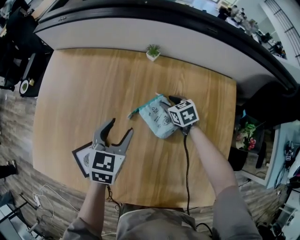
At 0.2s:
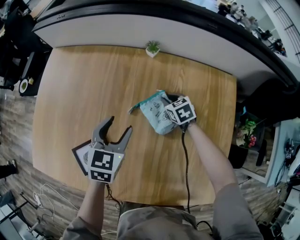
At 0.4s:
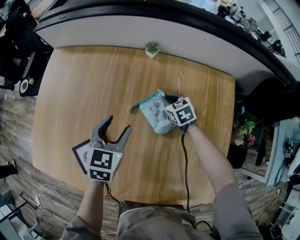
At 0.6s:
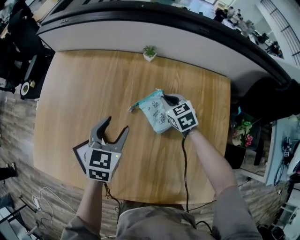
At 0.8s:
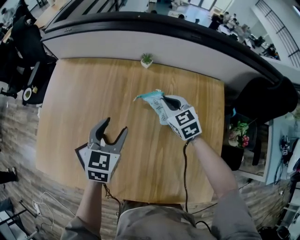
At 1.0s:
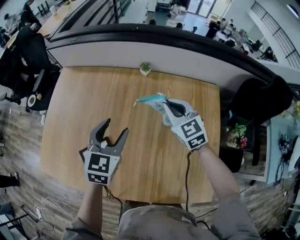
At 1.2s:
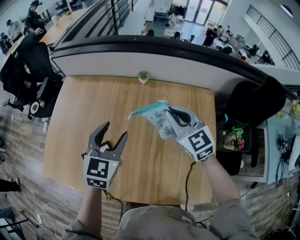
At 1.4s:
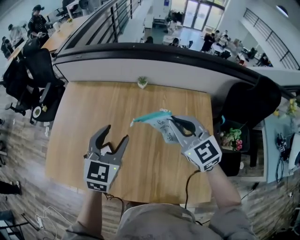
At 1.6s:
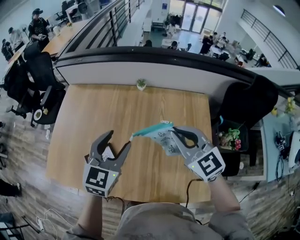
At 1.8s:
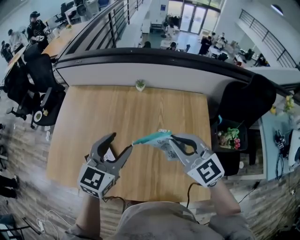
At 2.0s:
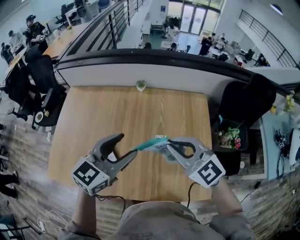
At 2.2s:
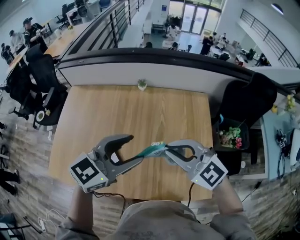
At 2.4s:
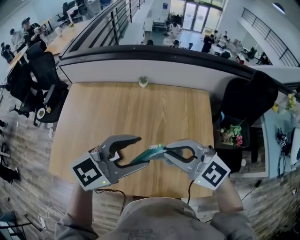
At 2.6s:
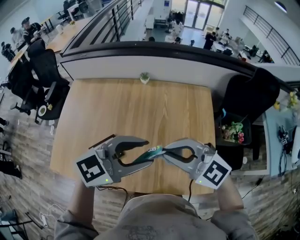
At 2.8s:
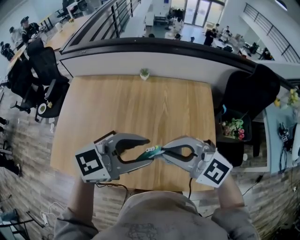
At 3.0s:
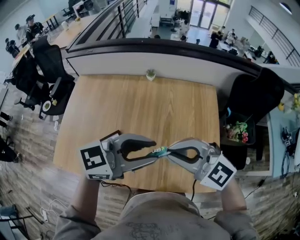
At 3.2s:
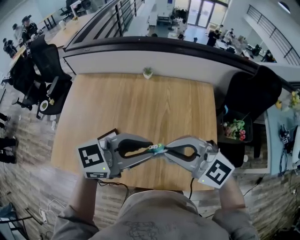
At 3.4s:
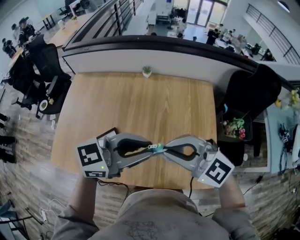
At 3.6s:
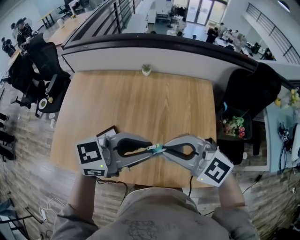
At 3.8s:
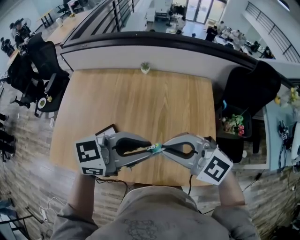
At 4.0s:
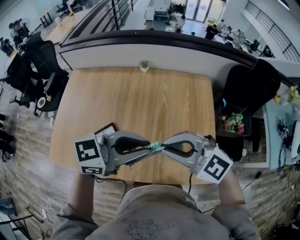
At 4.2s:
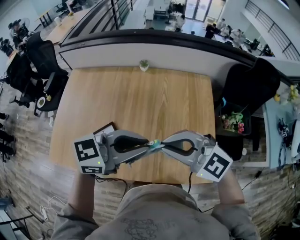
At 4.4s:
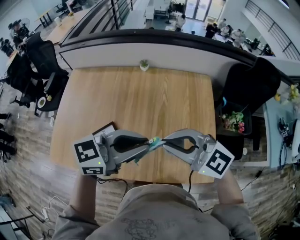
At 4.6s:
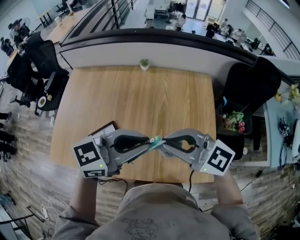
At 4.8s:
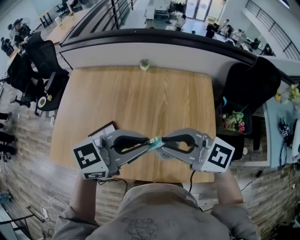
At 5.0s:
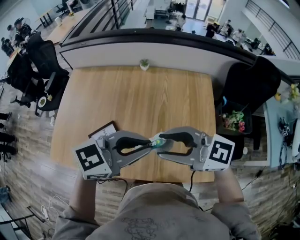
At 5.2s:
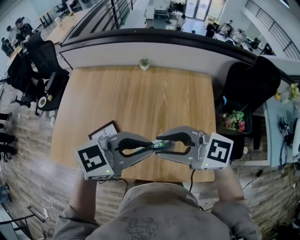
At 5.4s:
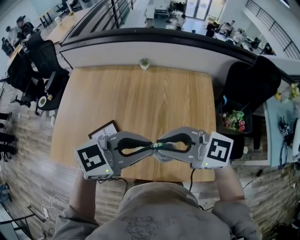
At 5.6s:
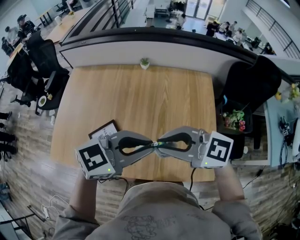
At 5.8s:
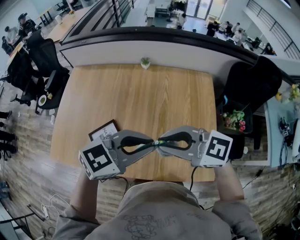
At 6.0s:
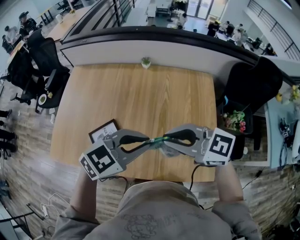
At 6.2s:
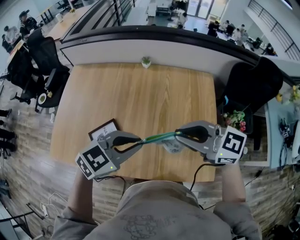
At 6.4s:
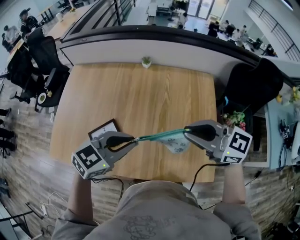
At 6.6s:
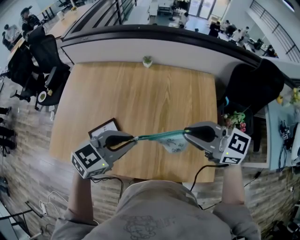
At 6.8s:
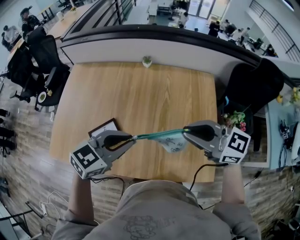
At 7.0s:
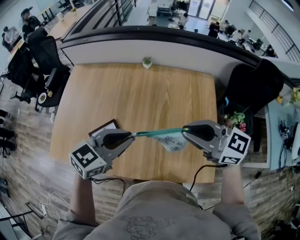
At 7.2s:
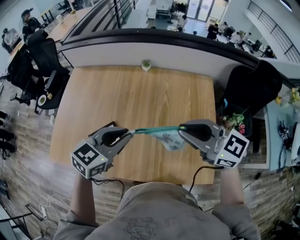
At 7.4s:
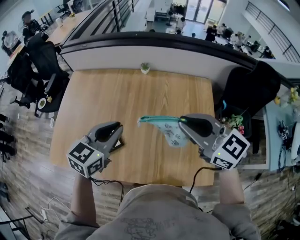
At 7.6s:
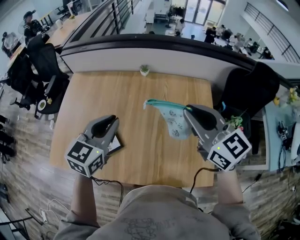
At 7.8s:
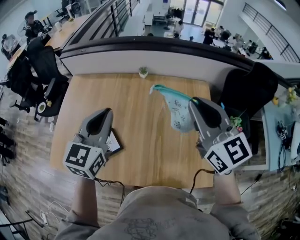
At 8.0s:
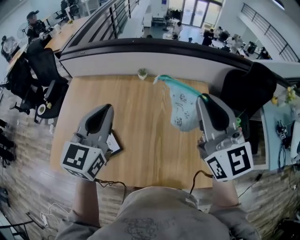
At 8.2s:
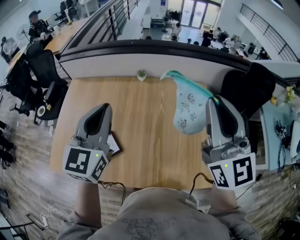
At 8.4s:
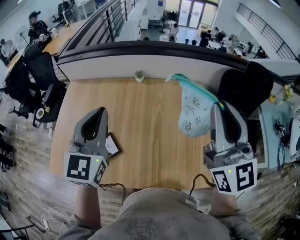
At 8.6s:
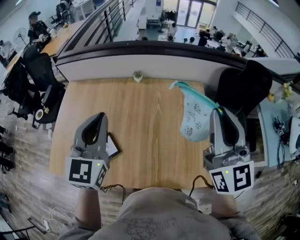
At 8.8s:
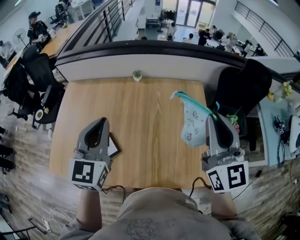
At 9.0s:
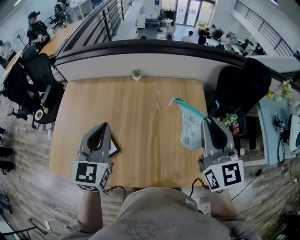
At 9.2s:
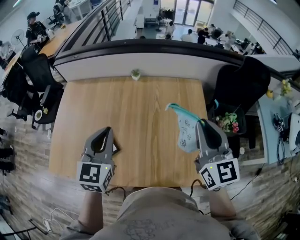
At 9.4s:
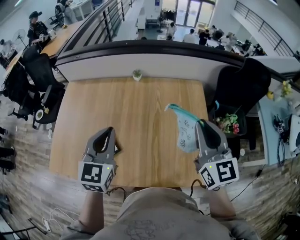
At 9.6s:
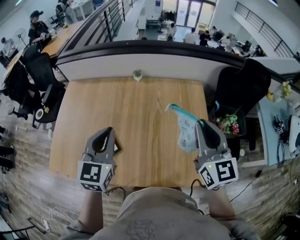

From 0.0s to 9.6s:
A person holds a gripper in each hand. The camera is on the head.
From 0.0s to 1.6s: The left gripper moves upward and backward, some 25 cm, and swivels roughly 20 degrees; the right gripper heads upward and backward, covering some 50 cm, points its fingers some 40 degrees further upward, and closes.
From 1.6s to 3.2s: The right gripper shifts by approximately 15 cm, and rotates about 30 degrees, while the left gripper changes place by about 15 cm, swivels approximately 50 degrees, and closes its fingers.
From 3.2s to 4.8s: The right gripper turns by some 30 degrees.
From 4.8s to 6.4s: The left gripper travels downward by some 10 cm, and changes its angle by roughly 20 degrees. Meanwhile the right gripper moves roughly 10 cm, and opens, then closes again.
From 6.4s to 8.0s: The grippers both shift upward by approximately 15 cm. The left gripper rotates some 40 degrees, while the right gripper turns by some 50 degrees.
From 8.0s to 9.6s: The two grippers go some 10 cm downward.

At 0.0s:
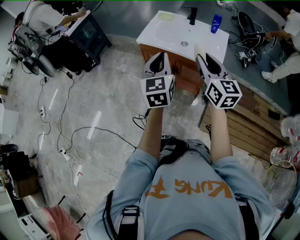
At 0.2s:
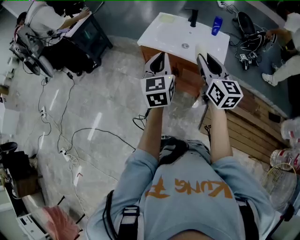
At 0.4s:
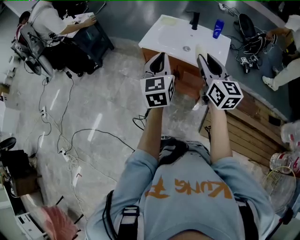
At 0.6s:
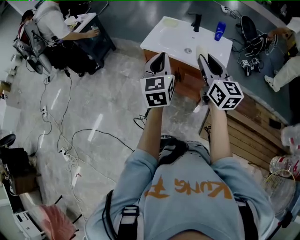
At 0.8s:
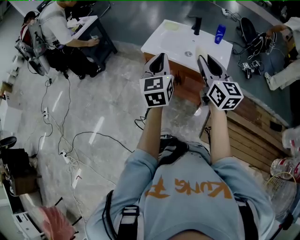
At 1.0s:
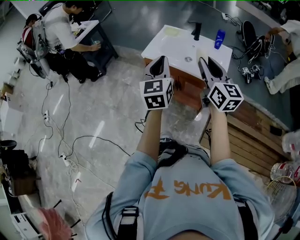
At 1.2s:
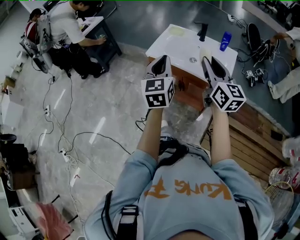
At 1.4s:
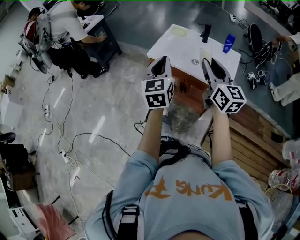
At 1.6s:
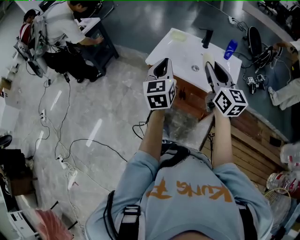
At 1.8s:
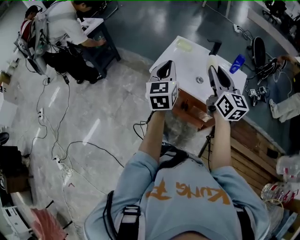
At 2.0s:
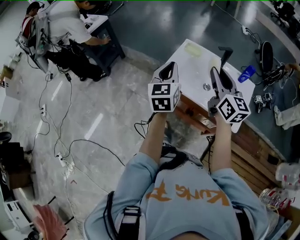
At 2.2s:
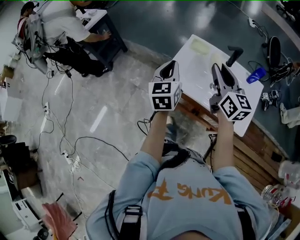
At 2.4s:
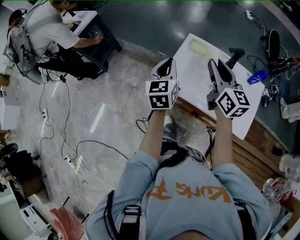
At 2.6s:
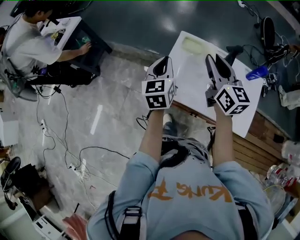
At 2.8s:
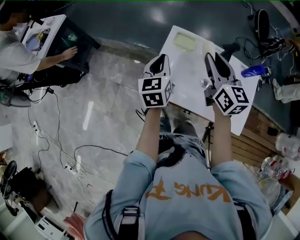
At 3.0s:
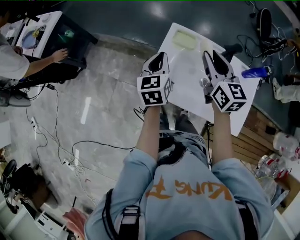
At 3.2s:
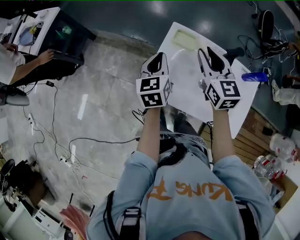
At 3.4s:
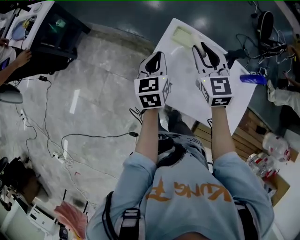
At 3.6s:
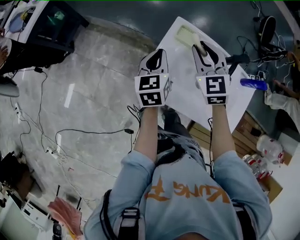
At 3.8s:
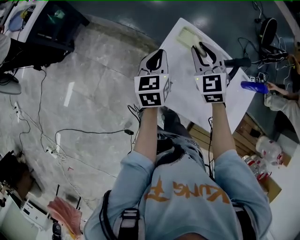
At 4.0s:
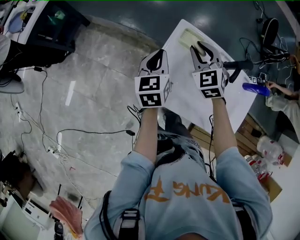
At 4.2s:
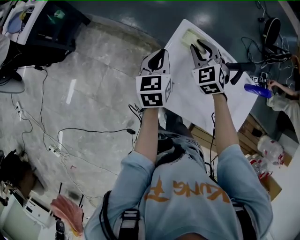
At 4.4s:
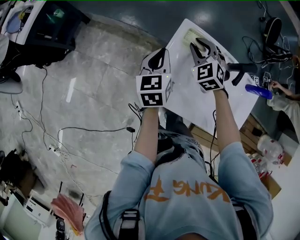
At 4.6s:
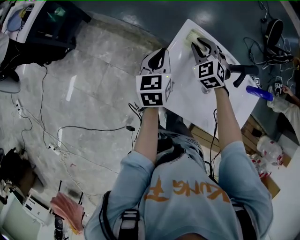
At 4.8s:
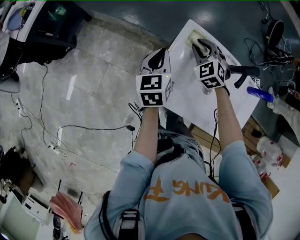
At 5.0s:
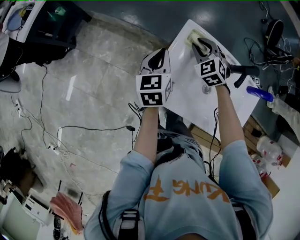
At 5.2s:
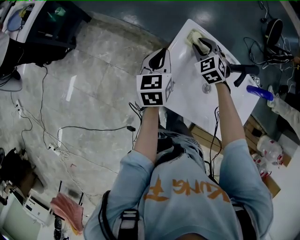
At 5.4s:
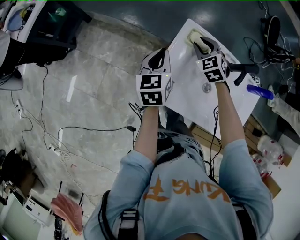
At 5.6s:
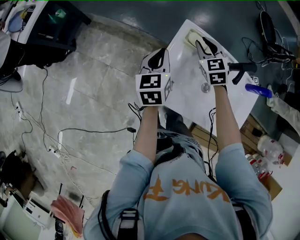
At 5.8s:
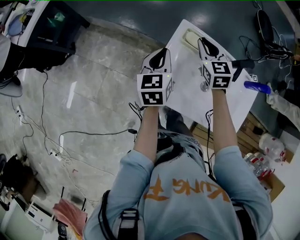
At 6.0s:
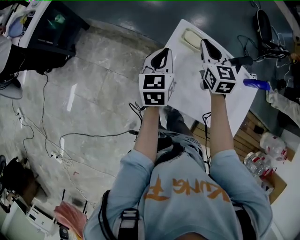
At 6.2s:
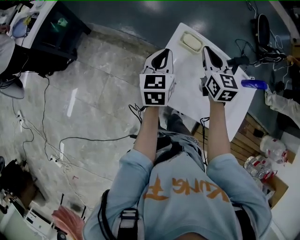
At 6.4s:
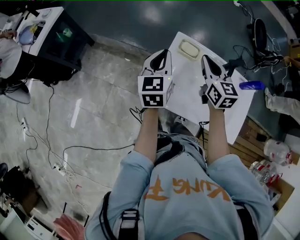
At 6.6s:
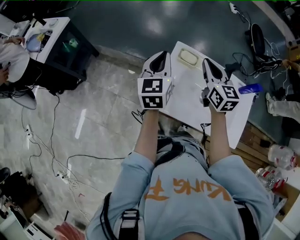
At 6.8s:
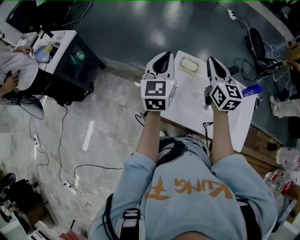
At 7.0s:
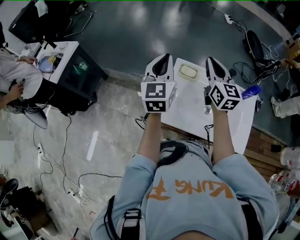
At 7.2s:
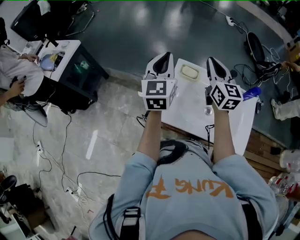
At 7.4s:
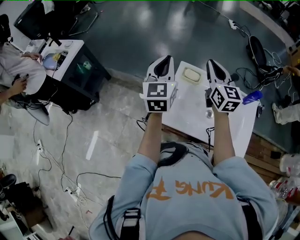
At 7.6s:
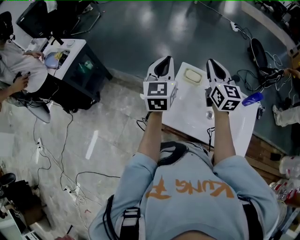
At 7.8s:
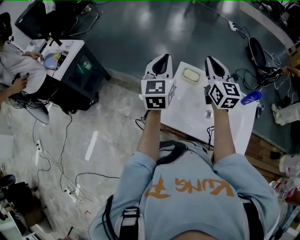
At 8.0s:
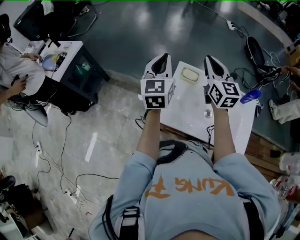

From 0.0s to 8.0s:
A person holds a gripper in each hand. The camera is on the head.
From 0.0s to 1.6s: Both grippers travel together forward, some 15 cm.
From 1.6s to 3.2s: The grippers both shift forward by about 40 cm. The right gripper rotates some 20 degrees; the left gripper turns by approximately 20 degrees.
From 3.2s to 4.8s: The left gripper shifts some 10 cm downward and forward. Meanwhile the right gripper moves downward and forward, some 20 cm, and twists approximately 40 degrees counterclockwise, seen from behind.
From 4.8s to 6.4s: The left gripper is displaced upward by about 10 cm; the right gripper is displaced upward and backward by roughly 15 cm, and rotates around the line of its fingers by some 50 degrees, clockwise from behind.
From 6.4s to 8.0s: Both grippers move upward, roughly 15 cm.

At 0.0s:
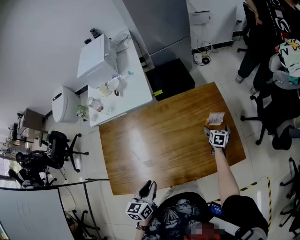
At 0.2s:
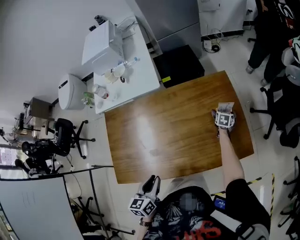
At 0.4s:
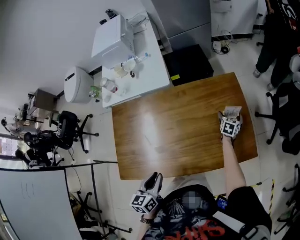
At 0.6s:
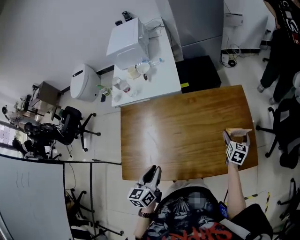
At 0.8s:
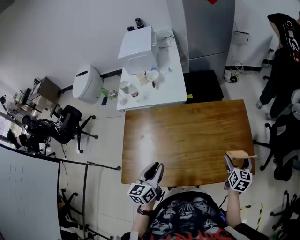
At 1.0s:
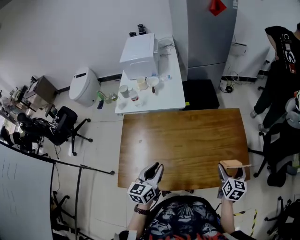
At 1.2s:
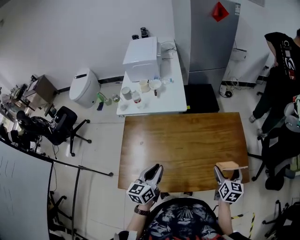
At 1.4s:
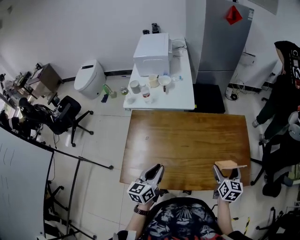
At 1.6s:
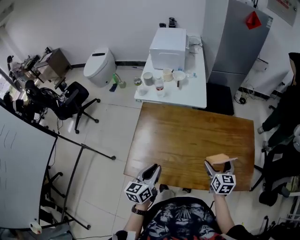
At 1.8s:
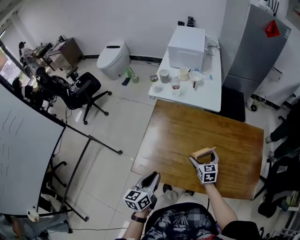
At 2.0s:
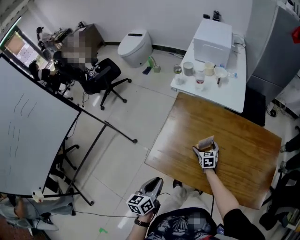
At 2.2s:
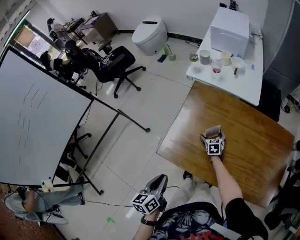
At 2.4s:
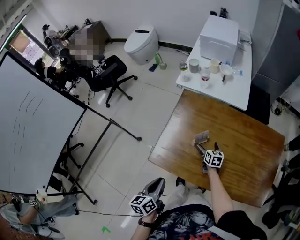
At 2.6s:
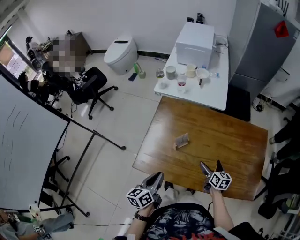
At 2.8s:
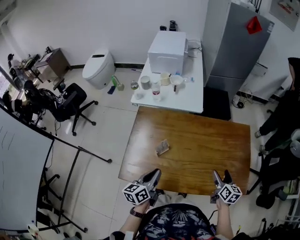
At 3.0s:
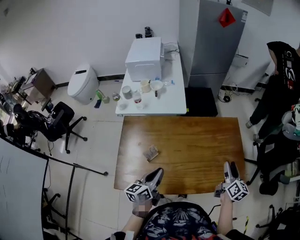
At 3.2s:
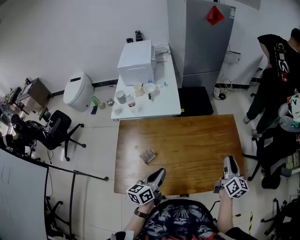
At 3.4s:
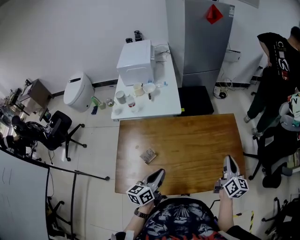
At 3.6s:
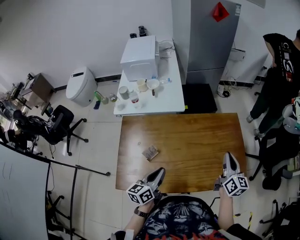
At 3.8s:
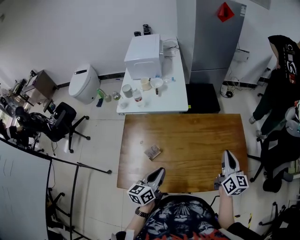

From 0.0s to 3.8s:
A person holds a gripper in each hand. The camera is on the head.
From 0.0s to 1.2s: The right gripper goes roughly 30 cm upward, backward and to the left, and swivels about 20 degrees, while the left gripper shifts about 15 cm to the left, forward and upward.
From 1.2s to 2.6s: The left gripper turns by some 30 degrees; the right gripper changes its angle by roughly 30 degrees.
From 2.6s to 3.8s: The right gripper shifts roughly 25 cm upward, changes its angle by some 40 degrees, and closes, while the left gripper changes place by approximately 20 cm, and turns by approximately 20 degrees.

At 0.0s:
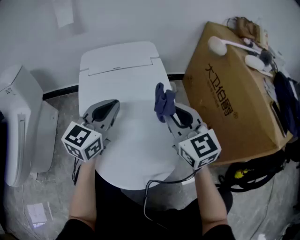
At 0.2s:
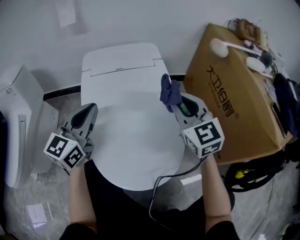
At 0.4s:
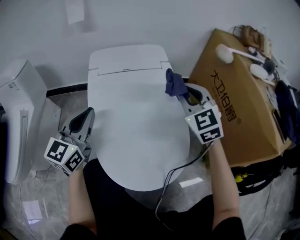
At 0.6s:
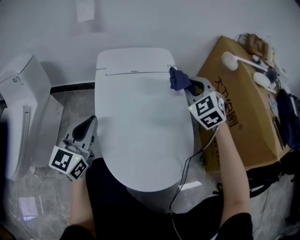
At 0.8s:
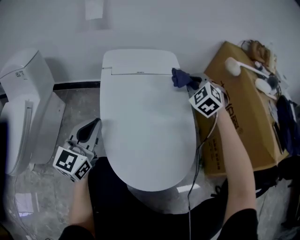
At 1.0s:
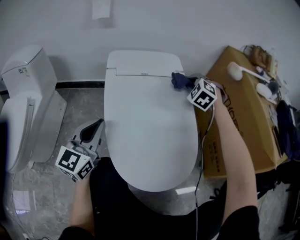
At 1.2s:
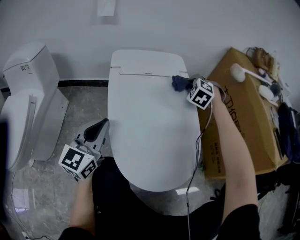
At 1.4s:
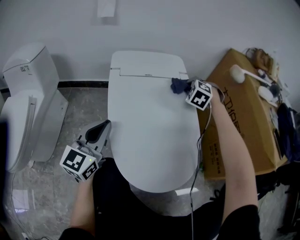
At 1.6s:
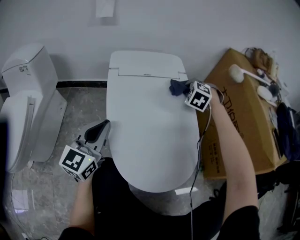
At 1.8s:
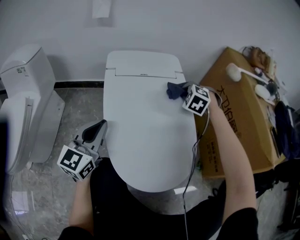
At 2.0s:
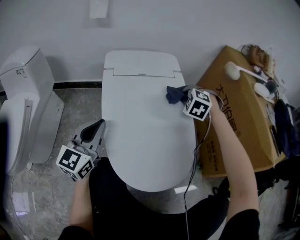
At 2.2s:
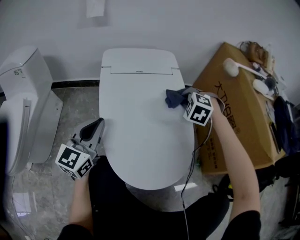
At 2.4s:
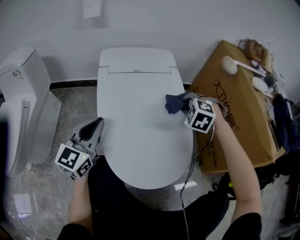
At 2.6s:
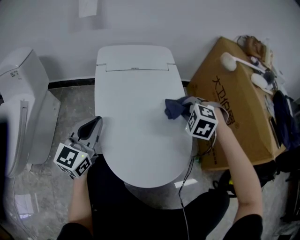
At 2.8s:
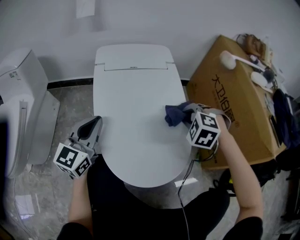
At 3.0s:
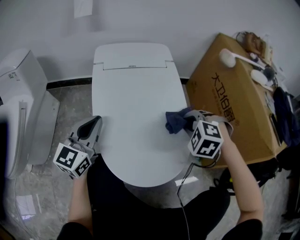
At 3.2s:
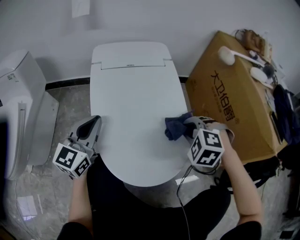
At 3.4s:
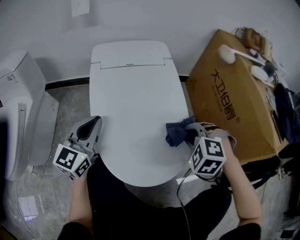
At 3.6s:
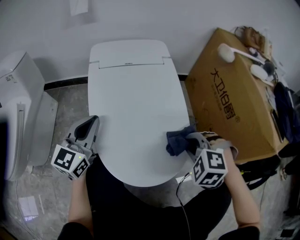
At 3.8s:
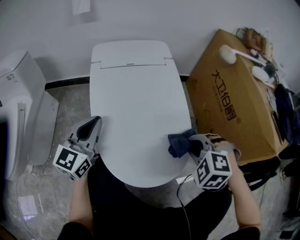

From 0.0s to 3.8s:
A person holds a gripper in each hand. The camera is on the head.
From 0.0s to 1.2s: The left gripper changes place by about 15 cm.
